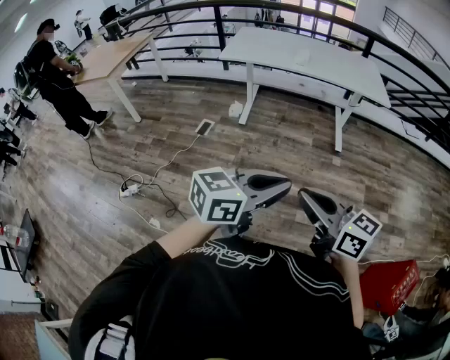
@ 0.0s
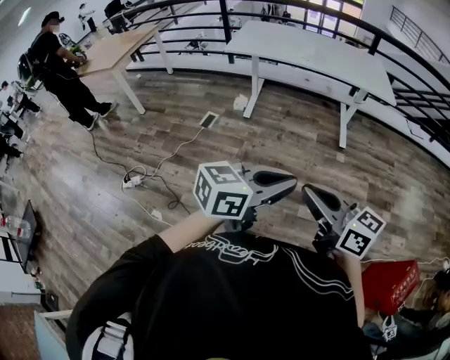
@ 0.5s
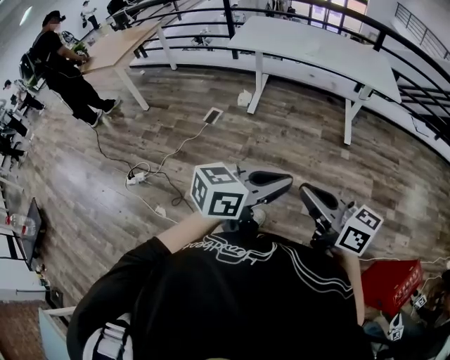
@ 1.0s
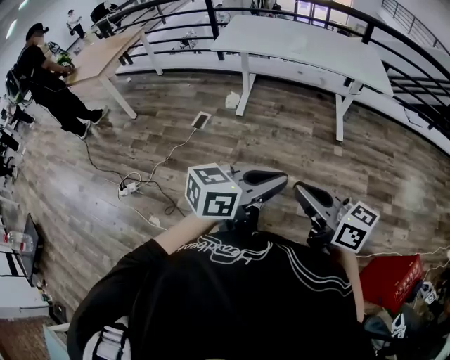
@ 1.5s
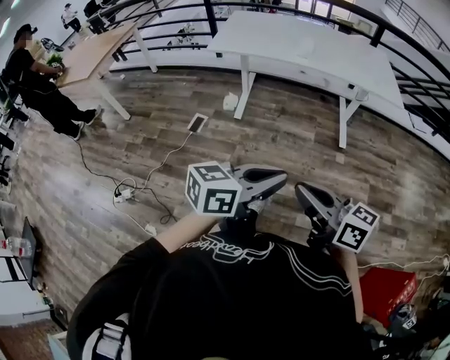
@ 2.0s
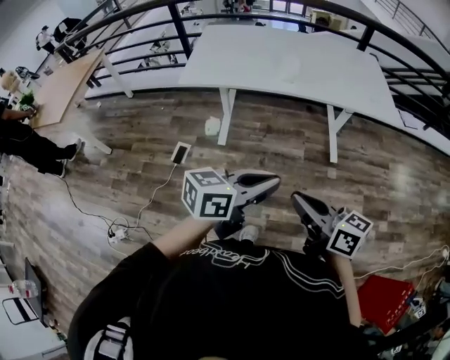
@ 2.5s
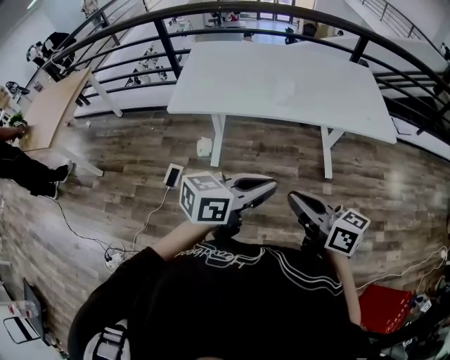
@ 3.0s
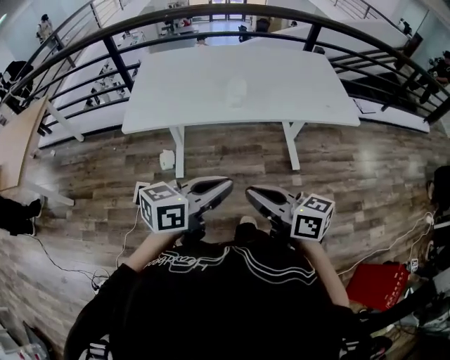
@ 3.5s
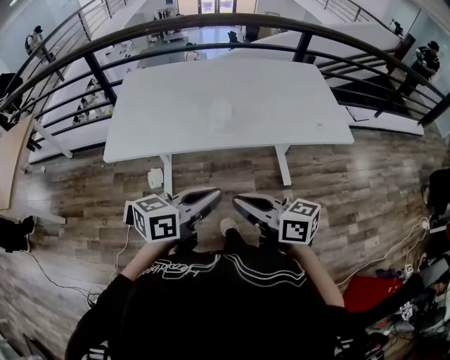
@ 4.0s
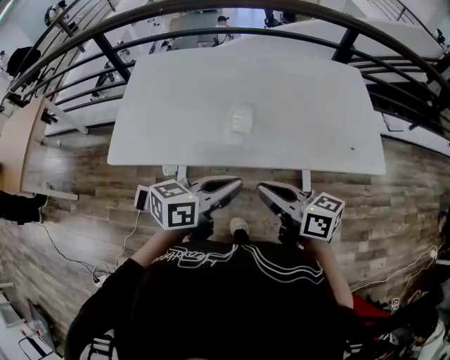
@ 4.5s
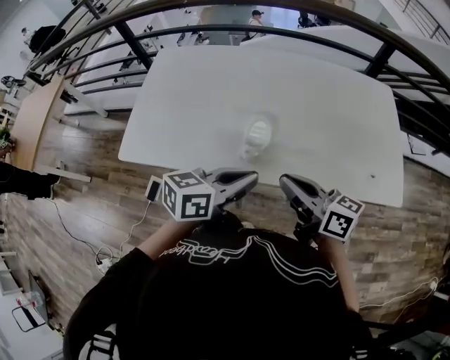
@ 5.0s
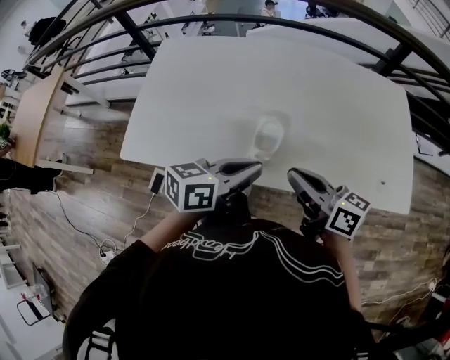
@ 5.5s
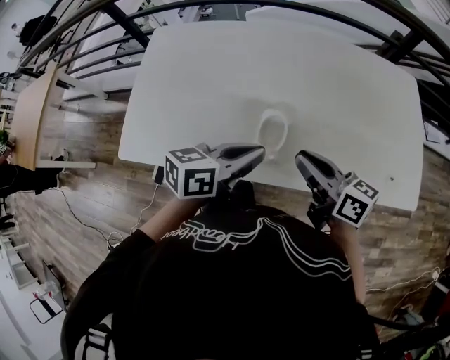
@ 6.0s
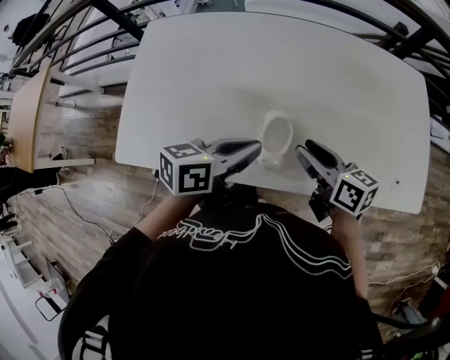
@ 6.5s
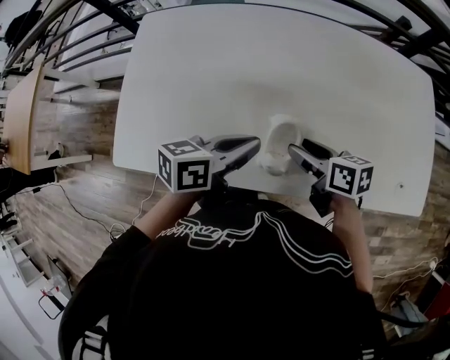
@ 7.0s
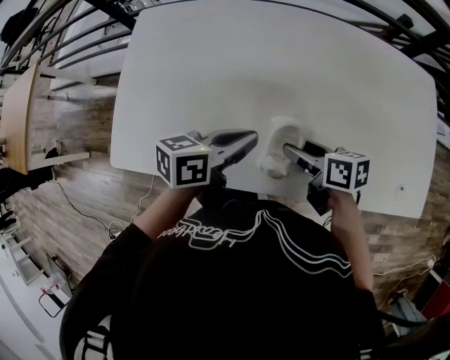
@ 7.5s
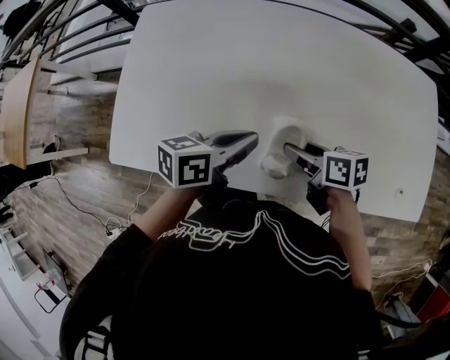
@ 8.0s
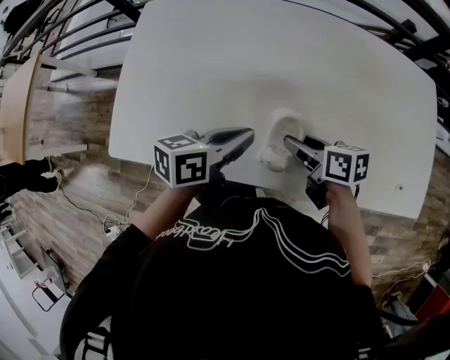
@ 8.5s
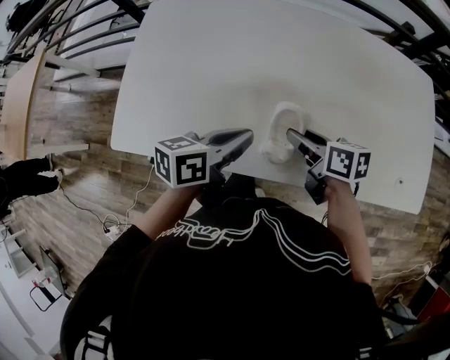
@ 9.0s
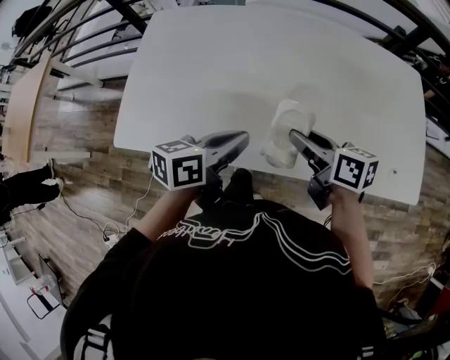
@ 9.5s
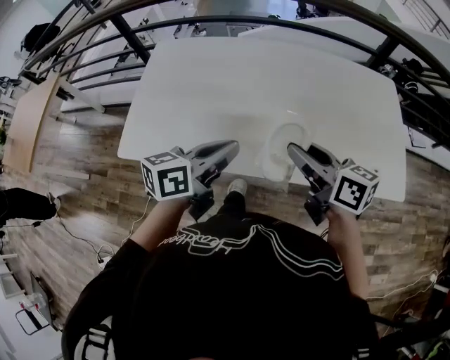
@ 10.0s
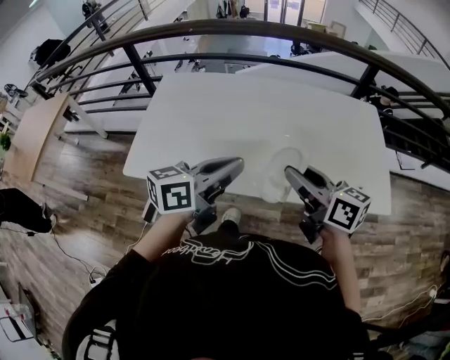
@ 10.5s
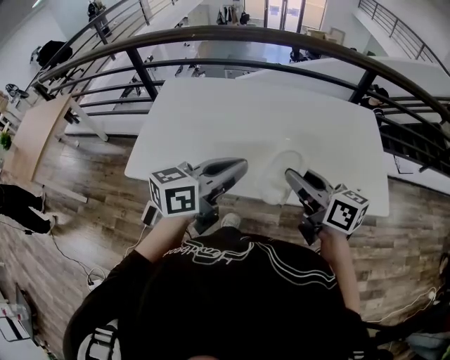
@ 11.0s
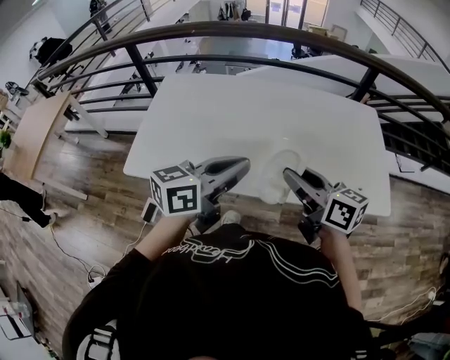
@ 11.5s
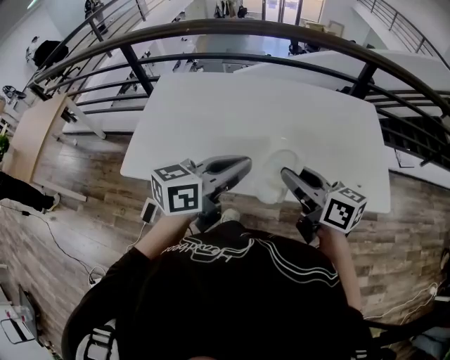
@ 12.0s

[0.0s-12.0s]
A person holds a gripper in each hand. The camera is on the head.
0.0s to 2.0s: Both grippers travel together forward, roughly 20 cm.
2.0s to 4.0s: Both grippers are carried forward, roughly 50 cm.
4.0s to 6.0s: The grippers both shift forward by roughly 35 cm.
6.0s to 8.0s: The left gripper travels forward, downward and to the left by about 10 cm, while the right gripper goes roughly 15 cm downward and forward, swivels roughly 30 degrees, and opens.
8.0s to 10.0s: The left gripper shifts approximately 20 cm backward and upward; the right gripper travels upward and backward by approximately 25 cm, and swivels roughly 30 degrees.
10.0s to 12.0s: The left gripper heads upward, covering about 10 cm. The right gripper changes place by some 5 cm.

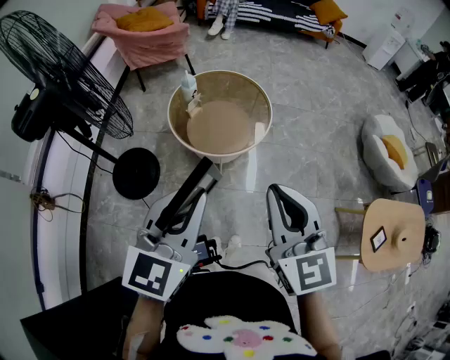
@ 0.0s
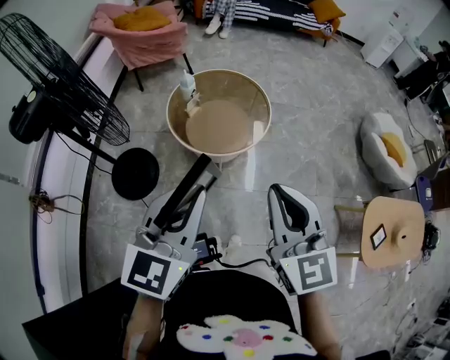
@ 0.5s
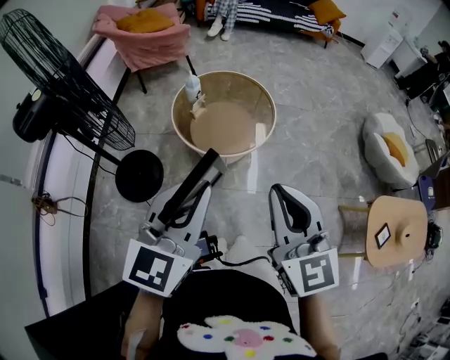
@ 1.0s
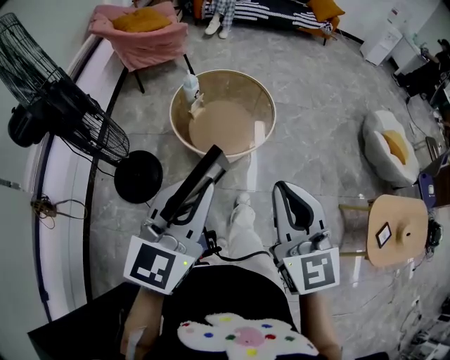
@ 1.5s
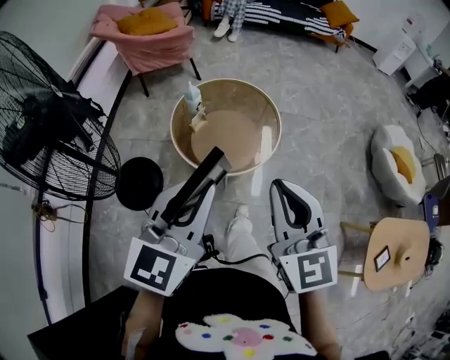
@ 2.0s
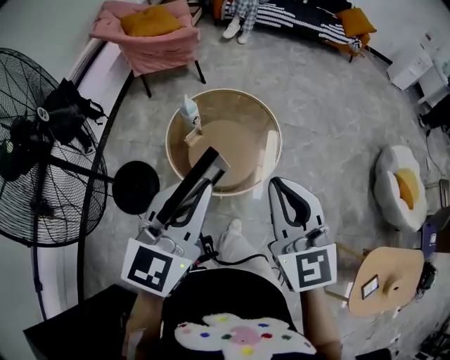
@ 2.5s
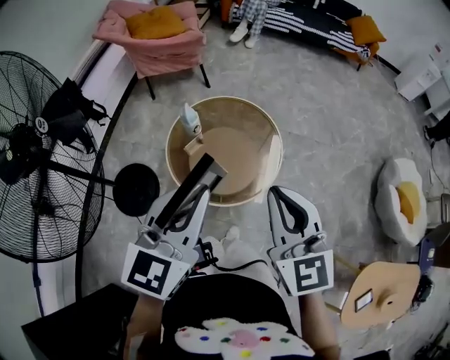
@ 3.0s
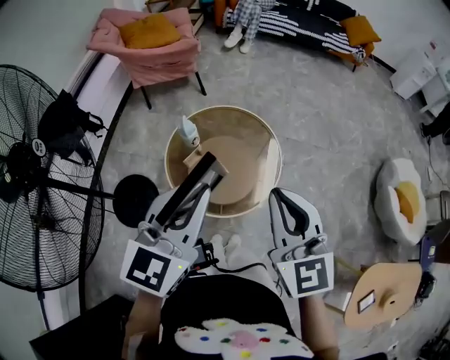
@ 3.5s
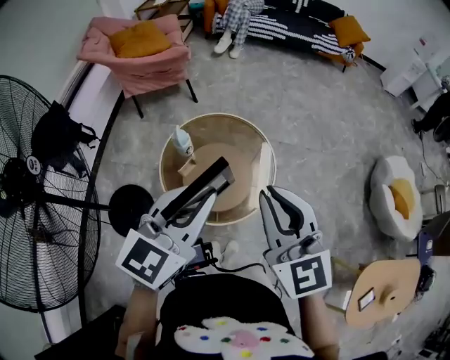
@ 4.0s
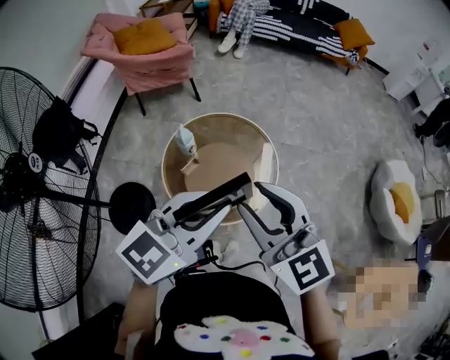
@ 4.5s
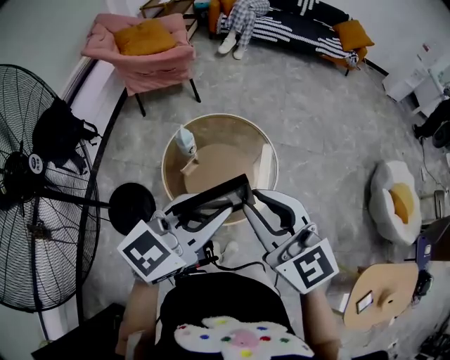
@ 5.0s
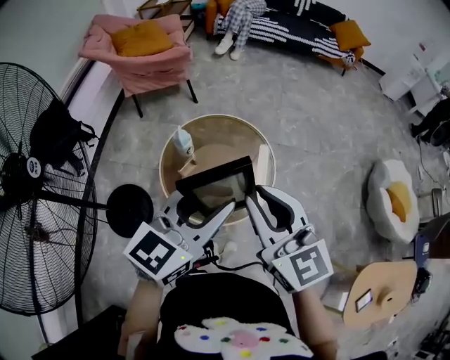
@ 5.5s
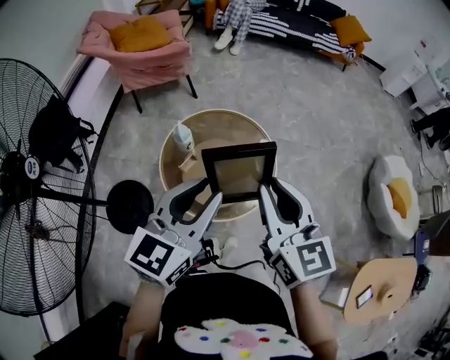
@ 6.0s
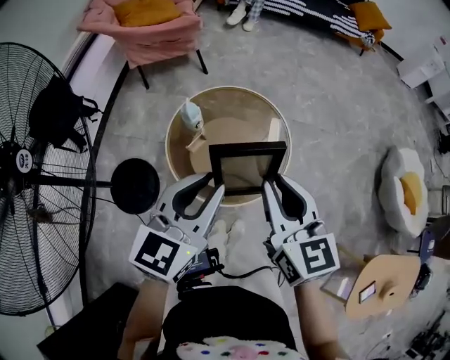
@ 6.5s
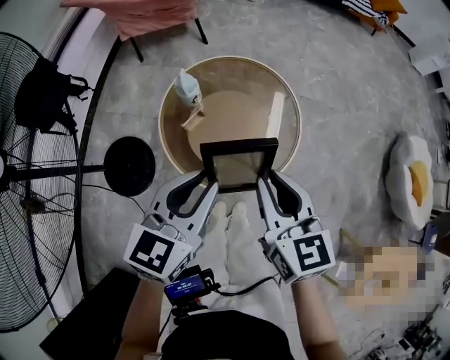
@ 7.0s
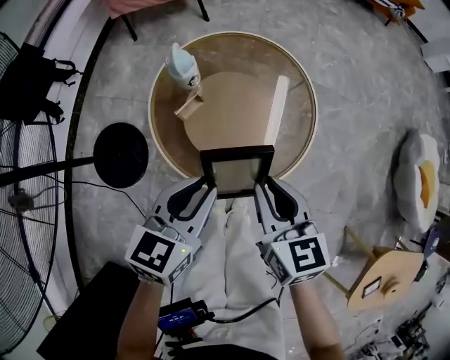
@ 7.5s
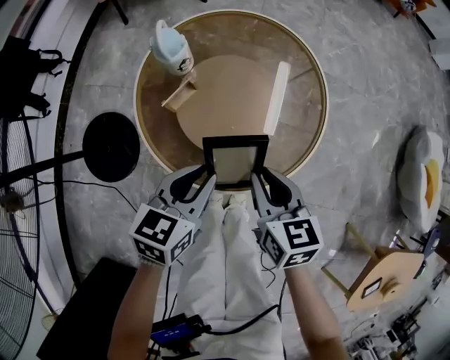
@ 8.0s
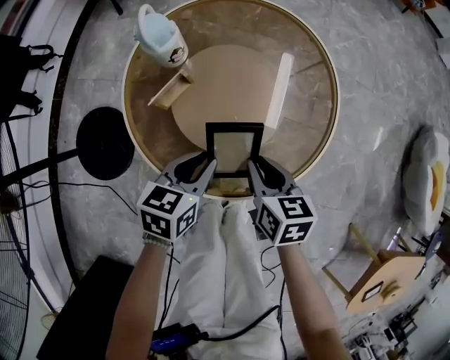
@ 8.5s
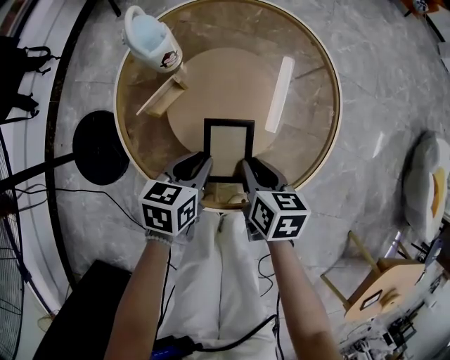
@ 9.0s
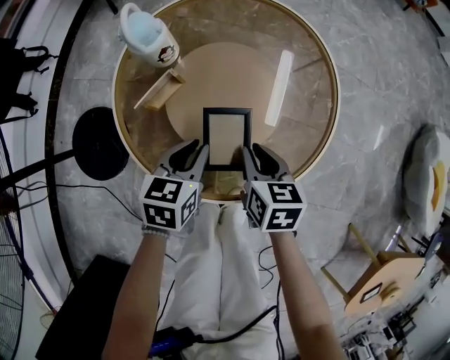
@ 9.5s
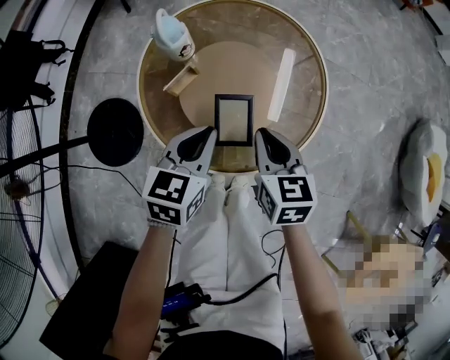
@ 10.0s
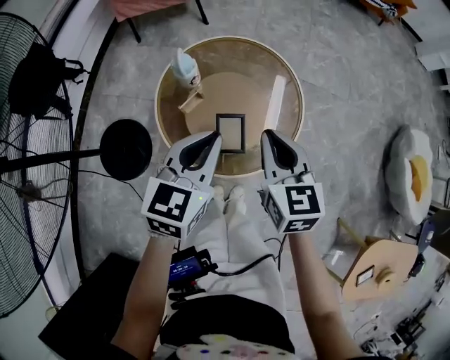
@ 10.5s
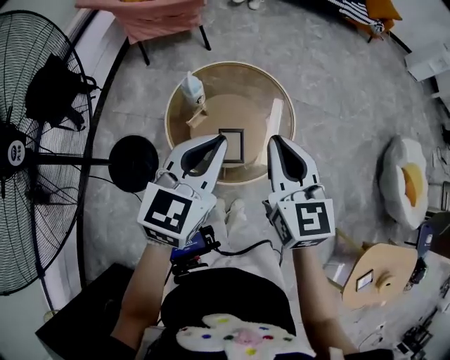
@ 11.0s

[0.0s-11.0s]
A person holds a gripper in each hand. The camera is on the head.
0.0s to 2.0s: Both grippers travel together forward, approximately 10 cm.
2.0s to 3.5s: Both grippers travel together forward, about 20 cm.
3.5s to 5.5s: The left gripper opens up, while the right gripper travels to the left by approximately 5 cm.
5.5s to 7.5s: The grippers both shift downward by about 30 cm. The left gripper swivels some 30 degrees. The right gripper turns by about 30 degrees.
7.5s to 9.0s: The two grippers go roughly 25 cm downward. The right gripper changes its angle by some 30 degrees, while the left gripper rotates approximately 20 degrees.
9.0s to 11.0s: The grippers both shift upward by some 50 cm. The left gripper rotates roughly 40 degrees. Meanwhile the right gripper angles its fingers upward, by some 30 degrees.

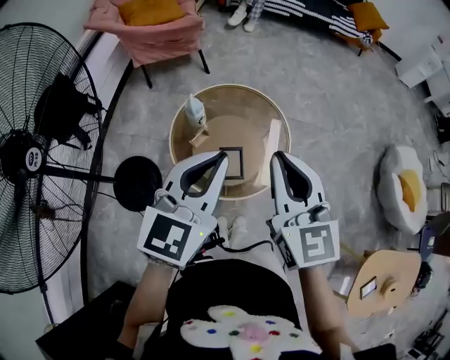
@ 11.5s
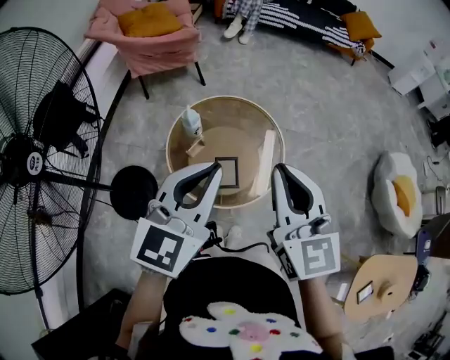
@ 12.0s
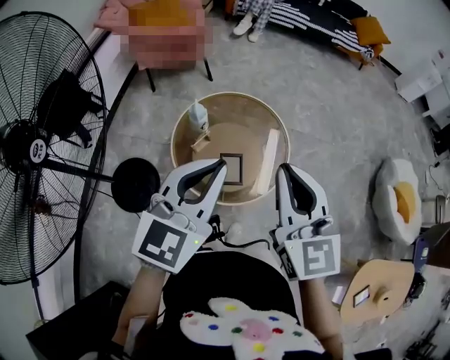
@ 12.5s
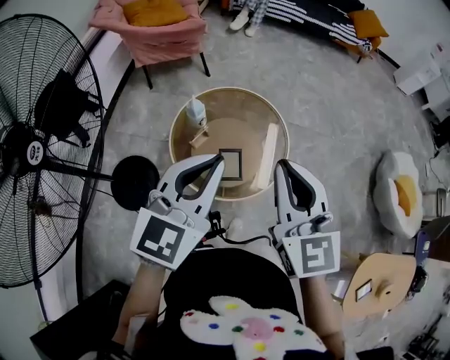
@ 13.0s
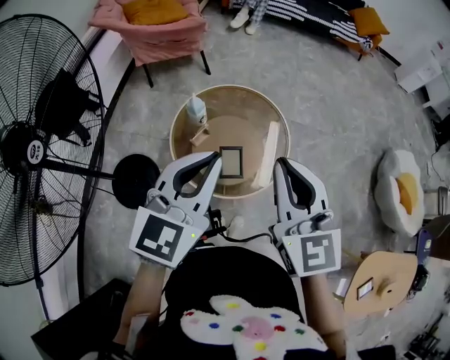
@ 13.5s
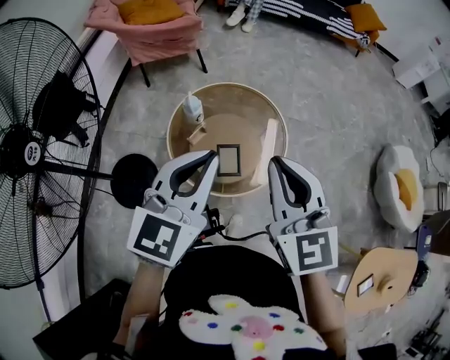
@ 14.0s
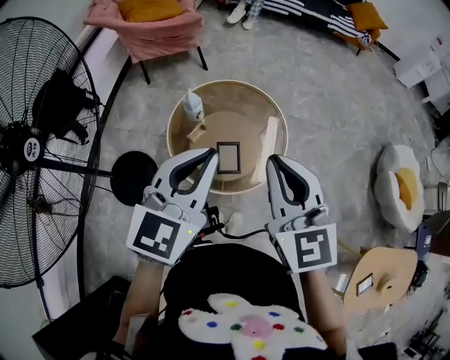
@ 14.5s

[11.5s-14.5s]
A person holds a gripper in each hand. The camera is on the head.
11.5s to 13.0s: There are only small adjustments of the grippers.
13.0s to 14.5s: Neither gripper changes place.

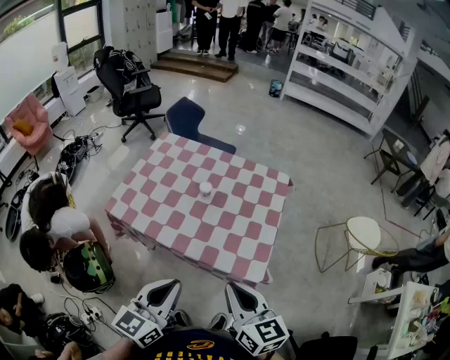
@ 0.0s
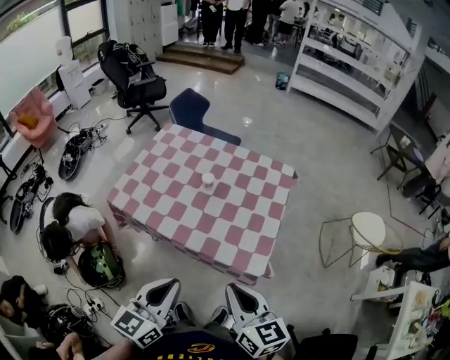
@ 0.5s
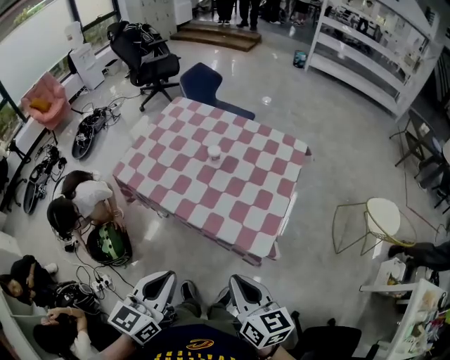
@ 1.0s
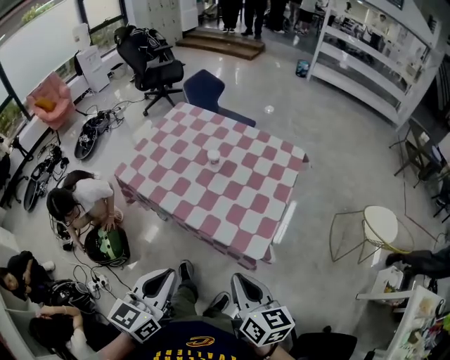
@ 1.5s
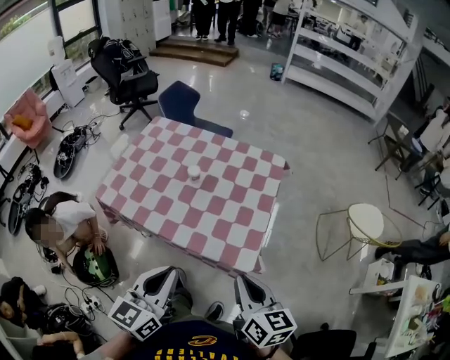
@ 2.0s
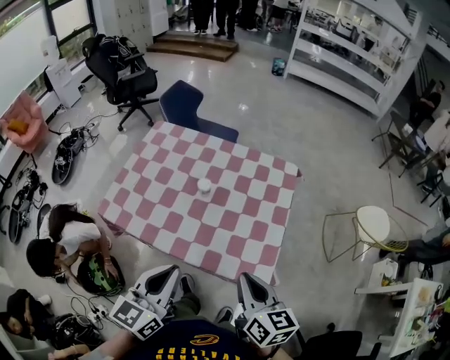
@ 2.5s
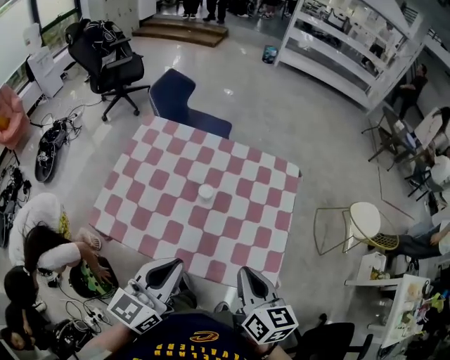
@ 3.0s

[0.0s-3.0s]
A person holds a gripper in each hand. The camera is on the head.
0.0s to 1.5s: The right gripper shifts about 10 cm to the right and downward. The left gripper shifts some 5 cm backward.
1.5s to 3.0s: Both grippers travel together forward, approximately 20 cm. The left gripper turns by approximately 20 degrees.
